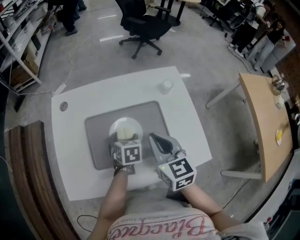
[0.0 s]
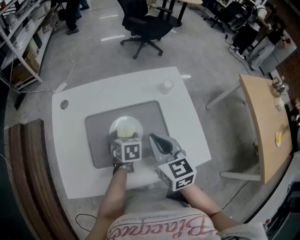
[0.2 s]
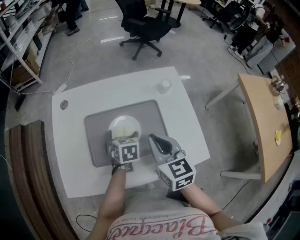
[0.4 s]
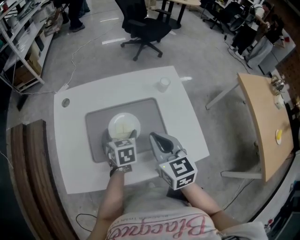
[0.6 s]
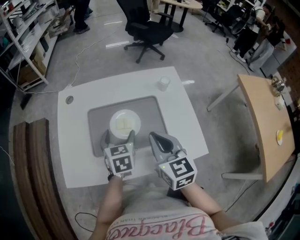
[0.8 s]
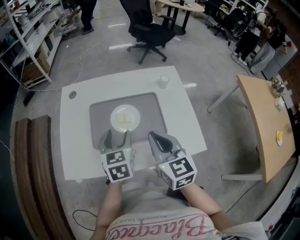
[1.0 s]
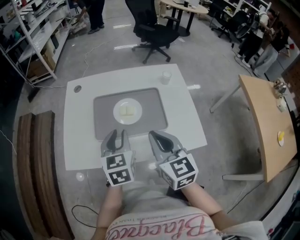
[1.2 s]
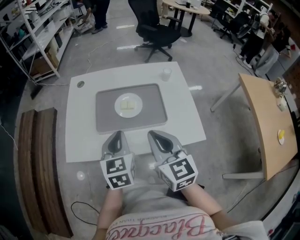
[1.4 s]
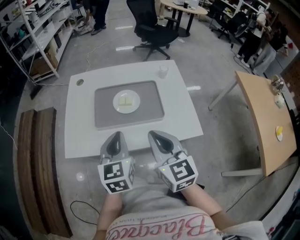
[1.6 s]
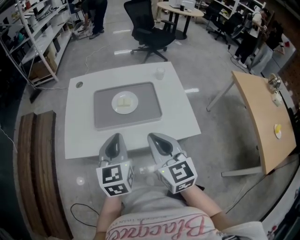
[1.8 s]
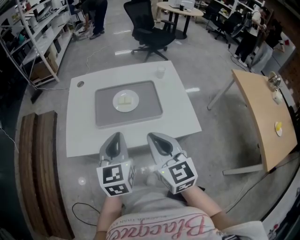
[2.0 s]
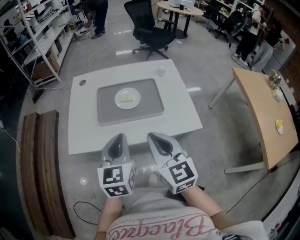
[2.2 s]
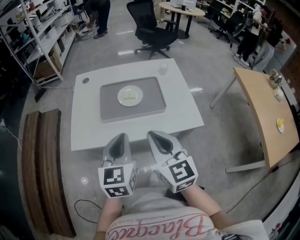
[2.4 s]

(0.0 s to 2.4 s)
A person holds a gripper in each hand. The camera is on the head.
0.0 s - 1.2 s: The right gripper moves backward, some 10 cm. Meanwhile the left gripper moves upward and backward, approximately 20 cm, changes its angle by some 30 degrees, and closes.
1.2 s - 2.4 s: The right gripper goes about 10 cm backward; the left gripper shifts roughly 15 cm backward and upward.

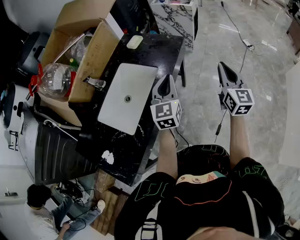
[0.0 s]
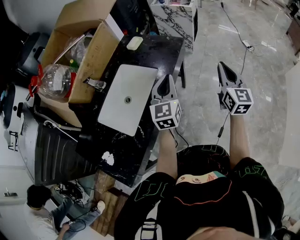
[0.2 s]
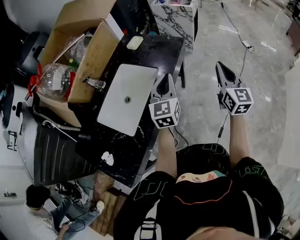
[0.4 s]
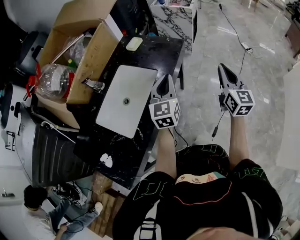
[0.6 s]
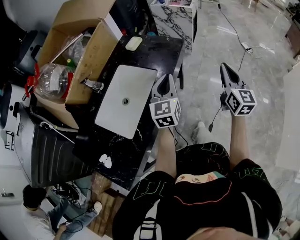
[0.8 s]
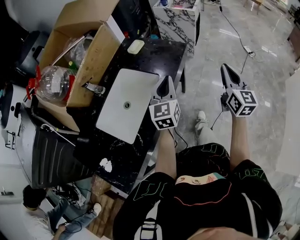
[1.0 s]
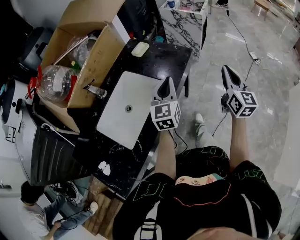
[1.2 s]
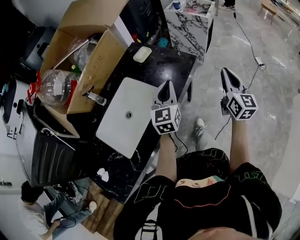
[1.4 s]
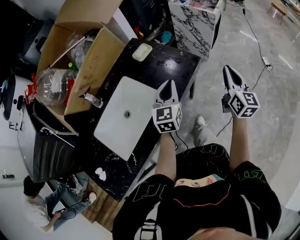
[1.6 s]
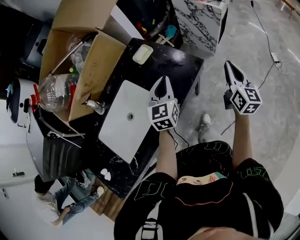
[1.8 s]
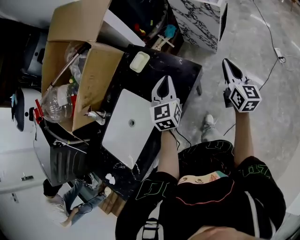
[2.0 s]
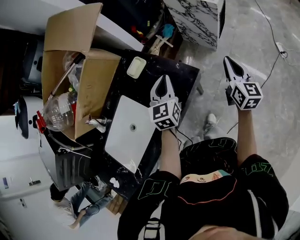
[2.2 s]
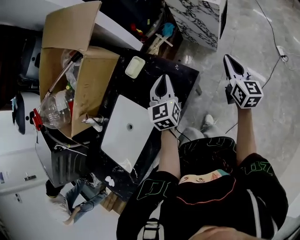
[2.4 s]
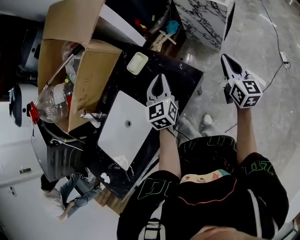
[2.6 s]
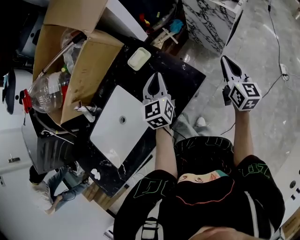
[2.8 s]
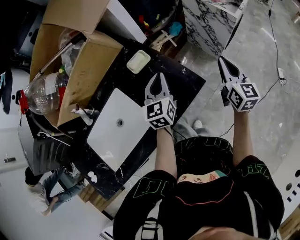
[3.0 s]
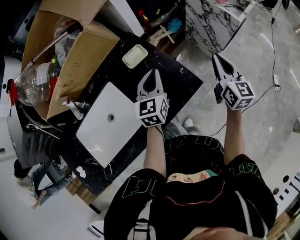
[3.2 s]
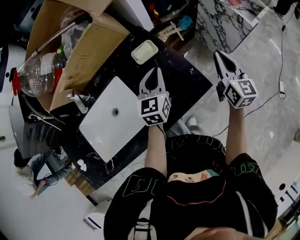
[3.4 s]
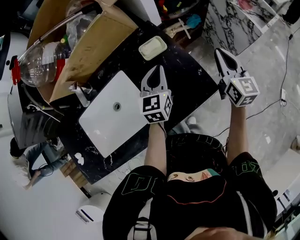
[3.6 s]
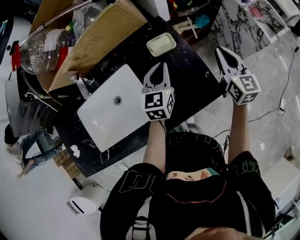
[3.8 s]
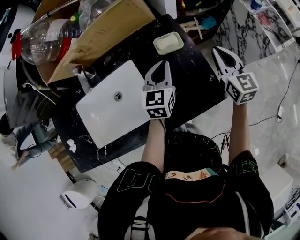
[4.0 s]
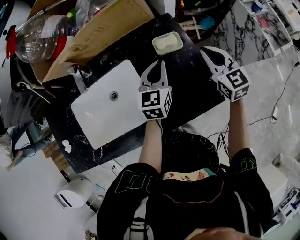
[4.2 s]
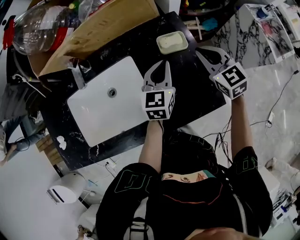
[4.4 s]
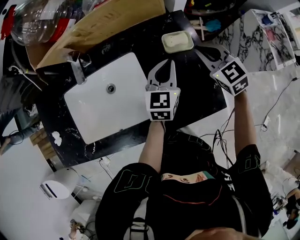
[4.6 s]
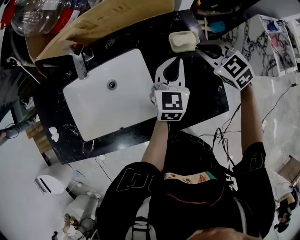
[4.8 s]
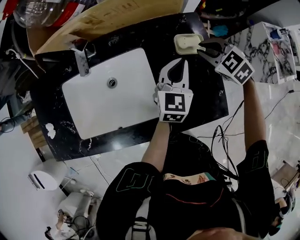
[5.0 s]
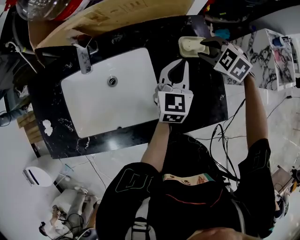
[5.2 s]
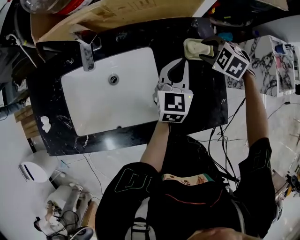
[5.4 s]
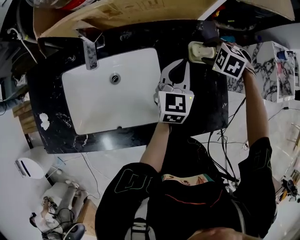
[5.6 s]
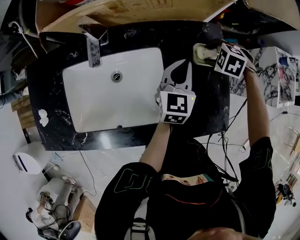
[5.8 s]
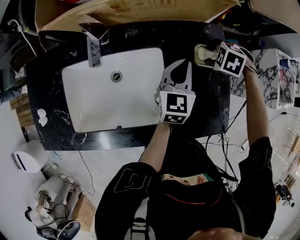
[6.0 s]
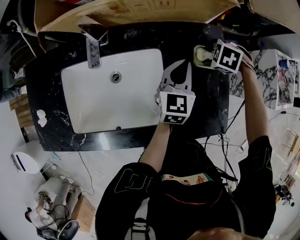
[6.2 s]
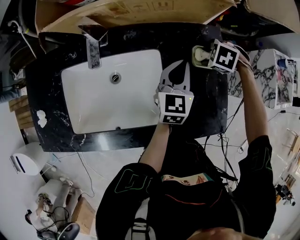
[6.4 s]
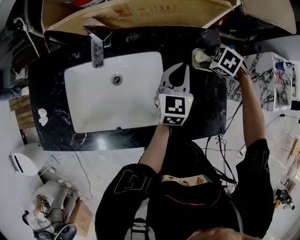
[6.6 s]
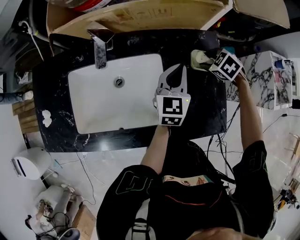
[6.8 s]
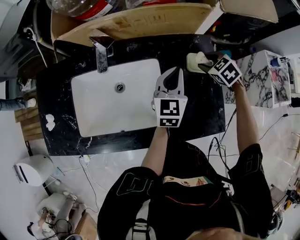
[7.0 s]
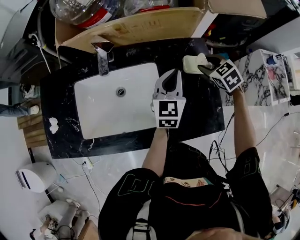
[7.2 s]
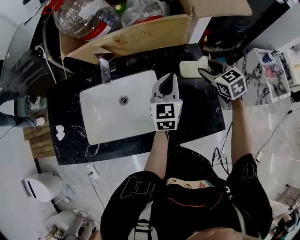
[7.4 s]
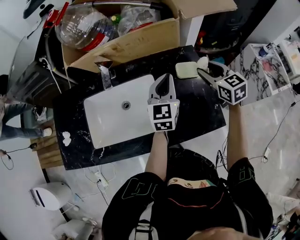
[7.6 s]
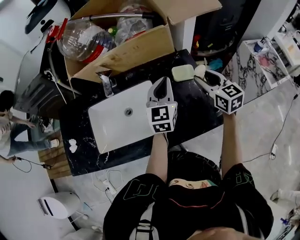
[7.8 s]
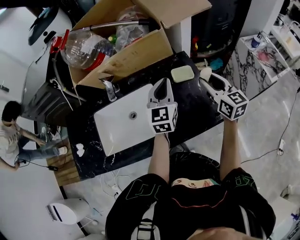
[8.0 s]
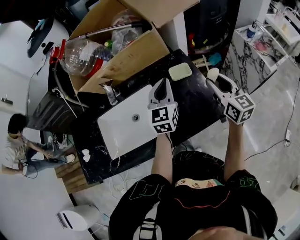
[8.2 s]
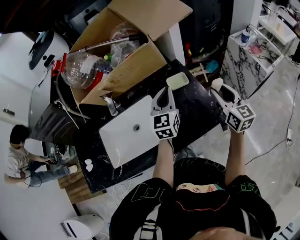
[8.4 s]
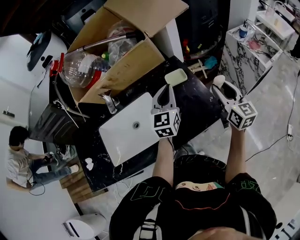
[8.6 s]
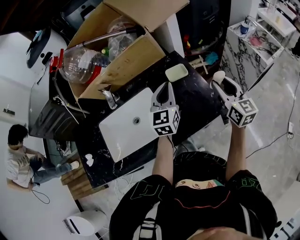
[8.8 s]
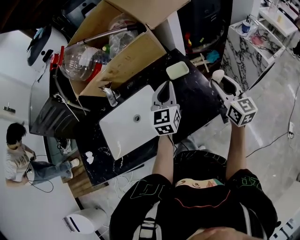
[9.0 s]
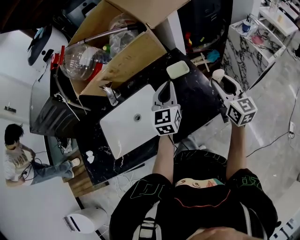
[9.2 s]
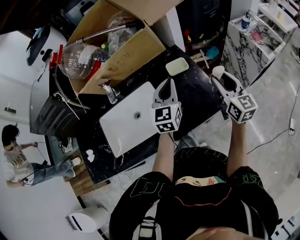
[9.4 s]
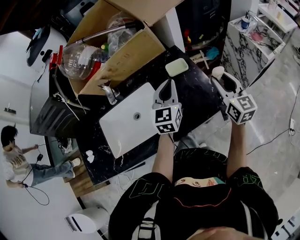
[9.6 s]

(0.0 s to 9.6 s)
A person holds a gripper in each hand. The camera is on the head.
0.0 s - 1.6 s: Both grippers move forward, some 20 cm.
1.6 s - 3.2 s: Both grippers move forward, approximately 20 cm. The right gripper turns by approximately 20 degrees.
3.2 s - 4.8 s: The left gripper ends up about 15 cm from where it was, while the right gripper moves approximately 35 cm, and tilts its fingers approximately 30 degrees downward.
4.8 s - 6.4 s: The right gripper goes some 10 cm downward, angles its fingers downward, by approximately 40 degrees, and opens its fingers, while the left gripper shifts by roughly 5 cm.
6.4 s - 8.0 s: The right gripper heads upward, covering about 25 cm, and tips its fingers upward by roughly 80 degrees. The left gripper heads upward, covering some 15 cm.
8.0 s - 9.6 s: The left gripper shifts by some 5 cm. The right gripper is displaced to the right and backward by about 10 cm.

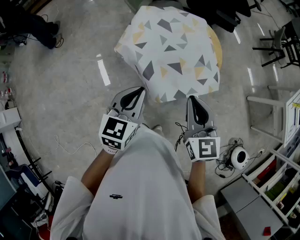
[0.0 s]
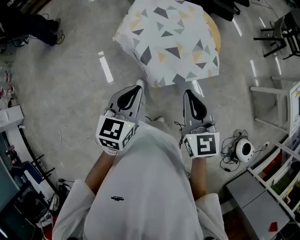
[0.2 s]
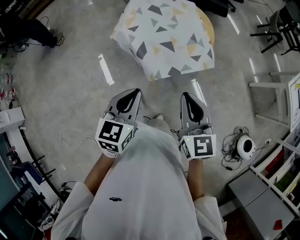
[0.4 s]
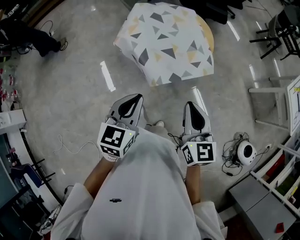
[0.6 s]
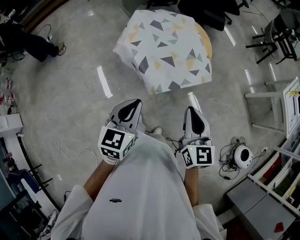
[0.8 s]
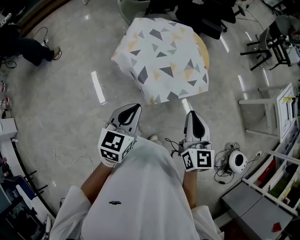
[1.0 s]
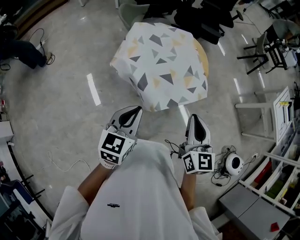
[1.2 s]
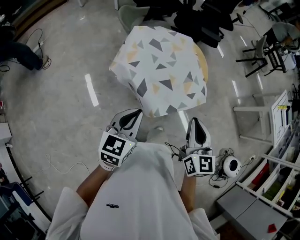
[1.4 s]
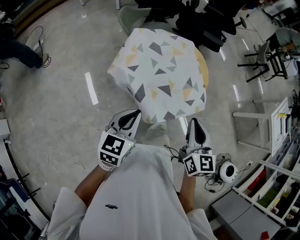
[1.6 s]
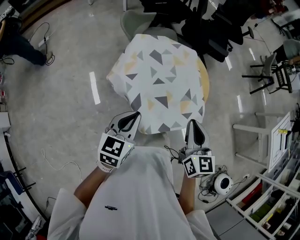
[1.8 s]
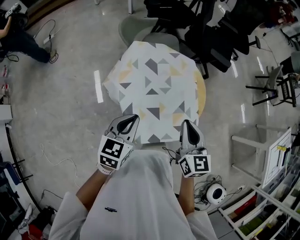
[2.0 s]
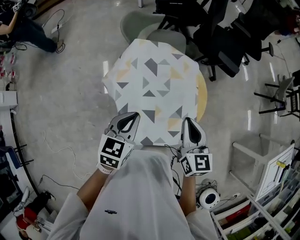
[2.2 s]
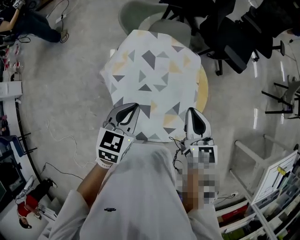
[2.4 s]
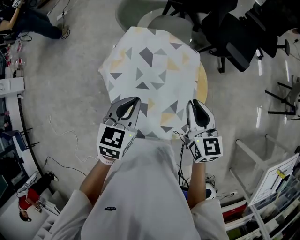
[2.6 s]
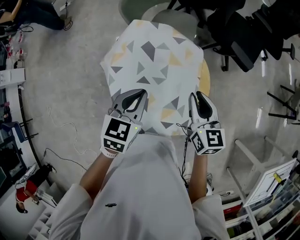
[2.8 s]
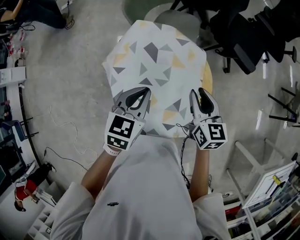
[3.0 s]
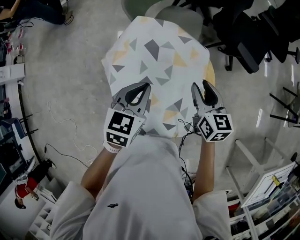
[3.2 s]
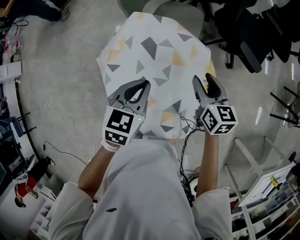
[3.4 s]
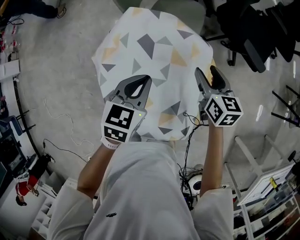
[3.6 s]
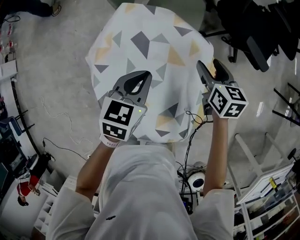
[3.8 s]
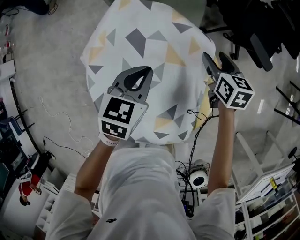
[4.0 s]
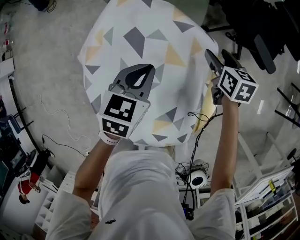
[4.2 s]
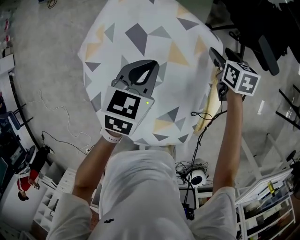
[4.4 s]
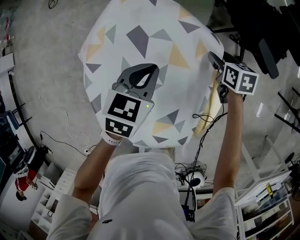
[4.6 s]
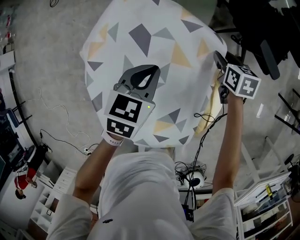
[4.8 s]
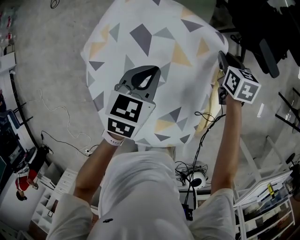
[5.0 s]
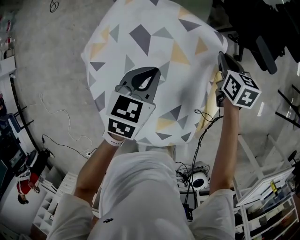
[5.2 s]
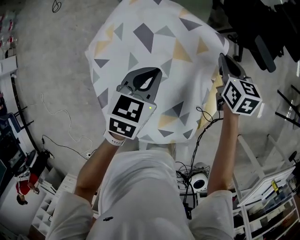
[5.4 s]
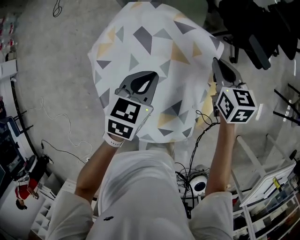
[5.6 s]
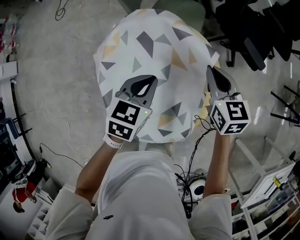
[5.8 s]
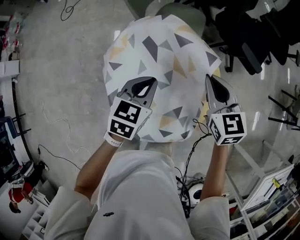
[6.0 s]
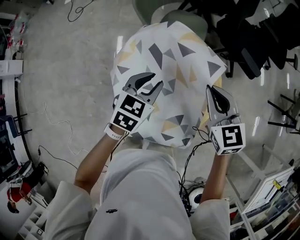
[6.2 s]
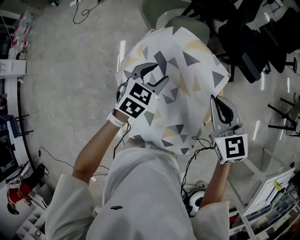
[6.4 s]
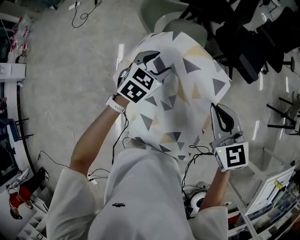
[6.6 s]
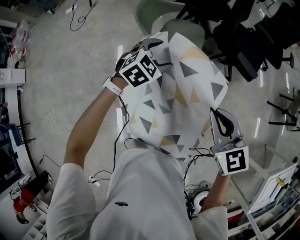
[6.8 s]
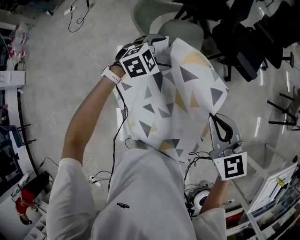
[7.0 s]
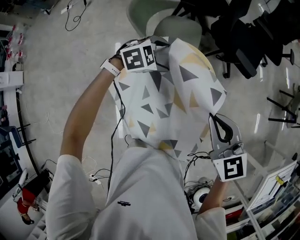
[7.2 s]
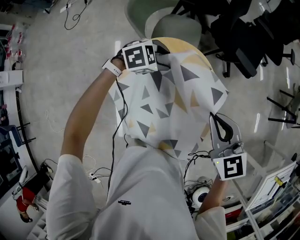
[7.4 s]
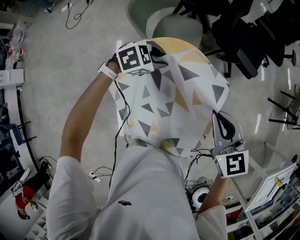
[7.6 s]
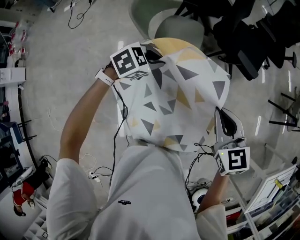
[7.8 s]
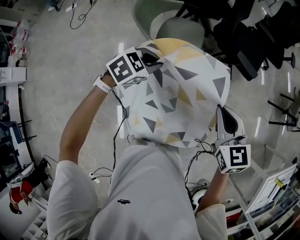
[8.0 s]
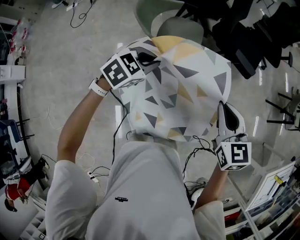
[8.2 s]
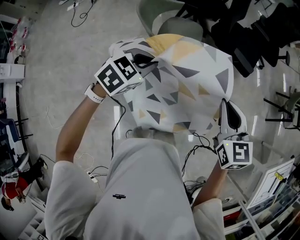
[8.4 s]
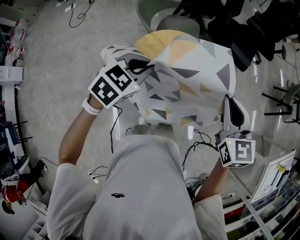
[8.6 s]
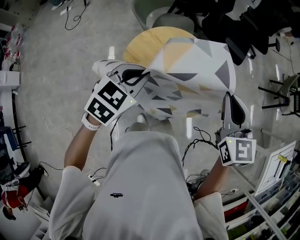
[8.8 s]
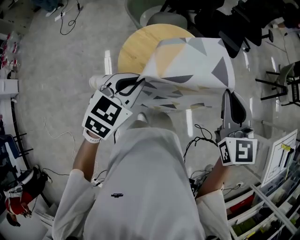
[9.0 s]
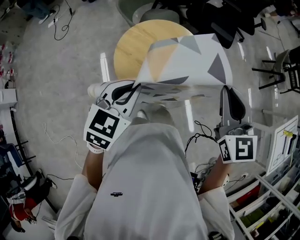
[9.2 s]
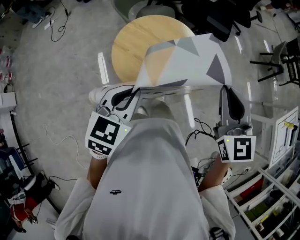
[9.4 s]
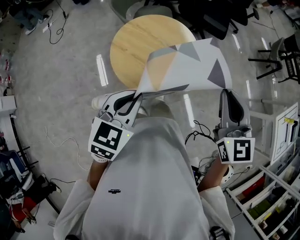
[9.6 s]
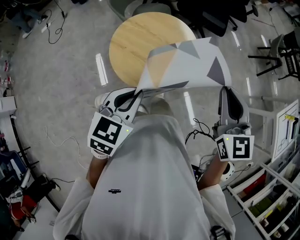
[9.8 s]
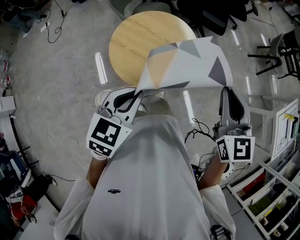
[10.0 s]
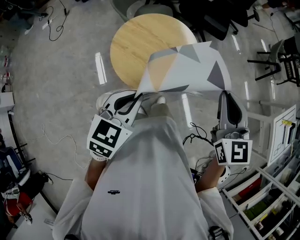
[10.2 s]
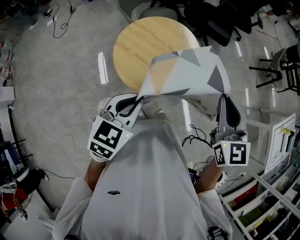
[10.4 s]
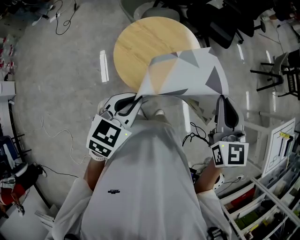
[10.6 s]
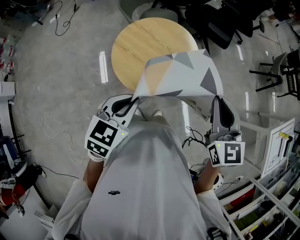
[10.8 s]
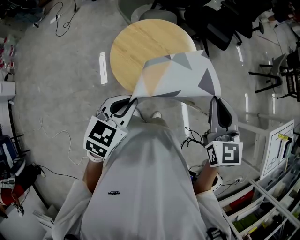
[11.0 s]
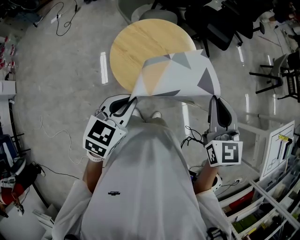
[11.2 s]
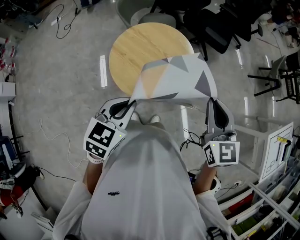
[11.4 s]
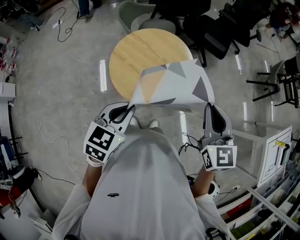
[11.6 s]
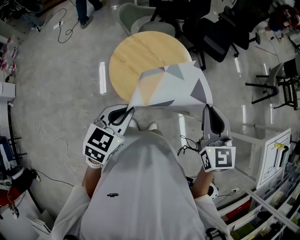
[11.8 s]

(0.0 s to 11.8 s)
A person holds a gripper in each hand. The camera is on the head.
0.0 s - 1.4 s: The right gripper goes backward and returns, roughly 15 cm each way, while the left gripper moves some 15 cm backward and comes back.
1.4 s - 3.0 s: The right gripper shifts by roughly 50 cm, turns by about 40 degrees, and opens its fingers, while the left gripper ends up roughly 40 cm from where it was, and rotates about 30 degrees.
3.0 s - 4.4 s: The grippers both shift downward and forward by about 30 cm. The right gripper turns by roughly 30 degrees, and opens up.
4.4 s - 6.0 s: The right gripper travels upward and backward by approximately 30 cm, rotates some 30 degrees, and closes. The left gripper goes about 15 cm backward and upward.
6.0 s - 7.4 s: The right gripper travels upward and backward by about 10 cm; the left gripper is displaced forward by roughly 10 cm, rotates about 60 degrees, and opens up.
7.4 s - 8.8 s: The left gripper goes roughly 30 cm backward and upward, swivels roughly 30 degrees, and closes up; the right gripper is displaced backward and upward by approximately 15 cm, and rotates approximately 20 degrees.
8.8 s - 10.4 s: Both grippers travel together backward and to the right, about 15 cm.
10.4 s - 11.8 s: The grippers move only a little.
